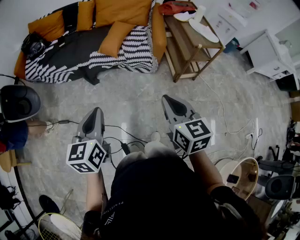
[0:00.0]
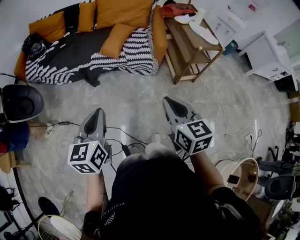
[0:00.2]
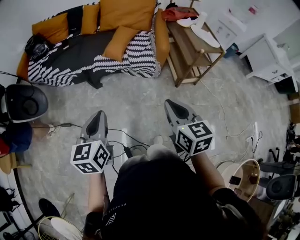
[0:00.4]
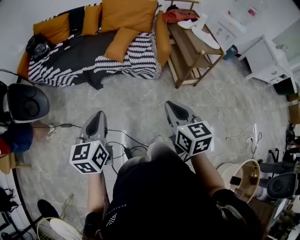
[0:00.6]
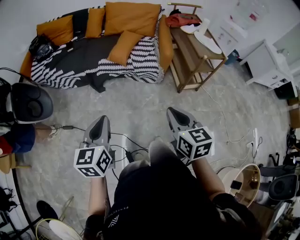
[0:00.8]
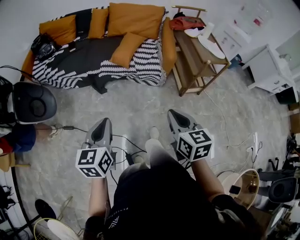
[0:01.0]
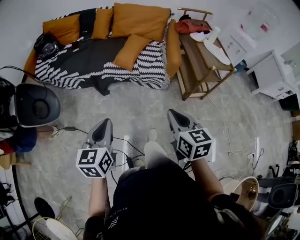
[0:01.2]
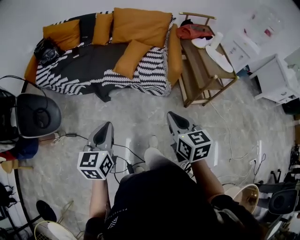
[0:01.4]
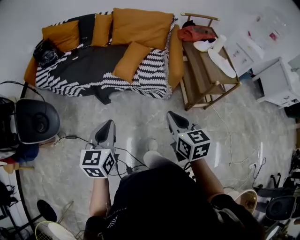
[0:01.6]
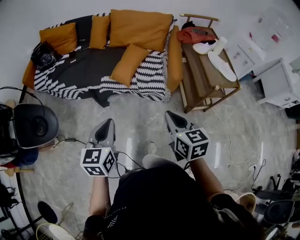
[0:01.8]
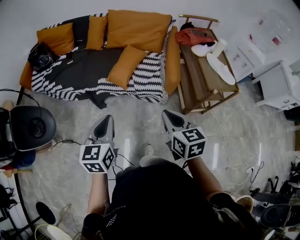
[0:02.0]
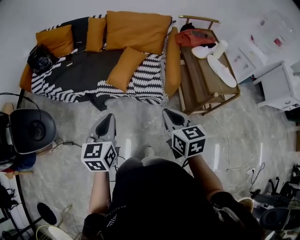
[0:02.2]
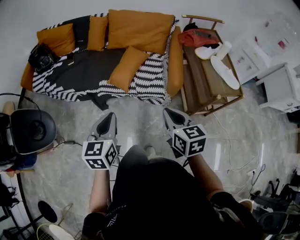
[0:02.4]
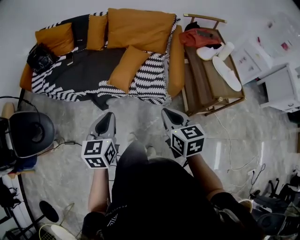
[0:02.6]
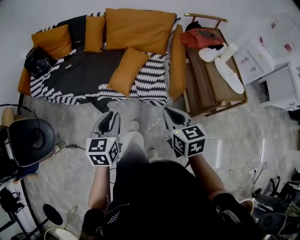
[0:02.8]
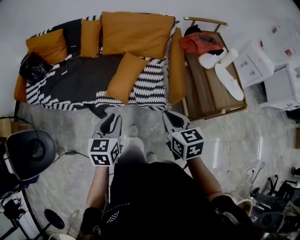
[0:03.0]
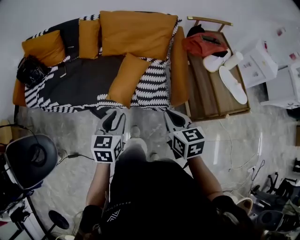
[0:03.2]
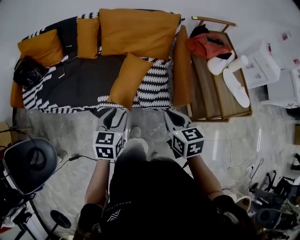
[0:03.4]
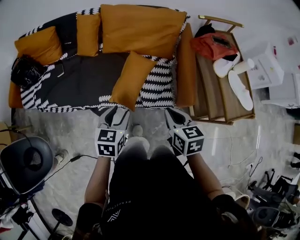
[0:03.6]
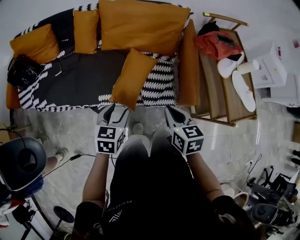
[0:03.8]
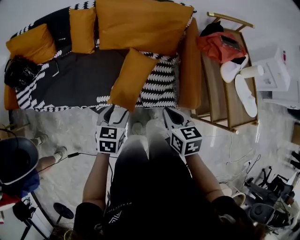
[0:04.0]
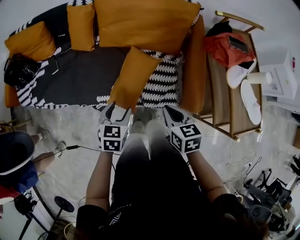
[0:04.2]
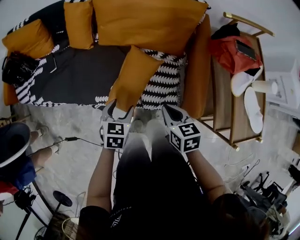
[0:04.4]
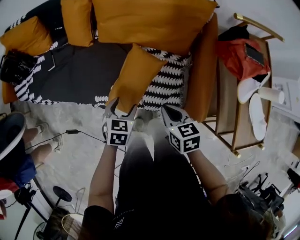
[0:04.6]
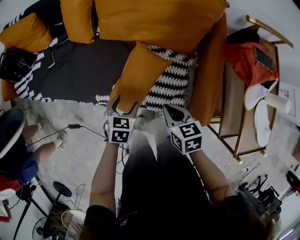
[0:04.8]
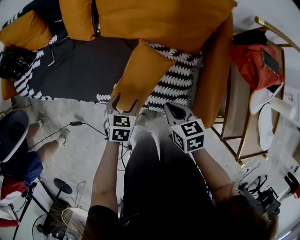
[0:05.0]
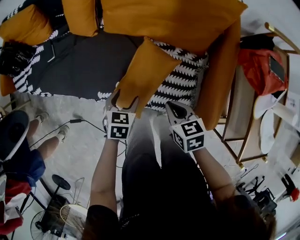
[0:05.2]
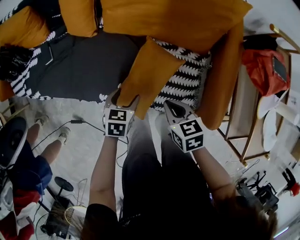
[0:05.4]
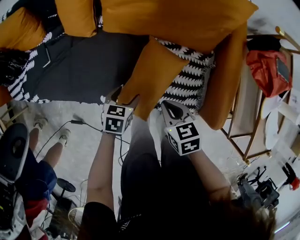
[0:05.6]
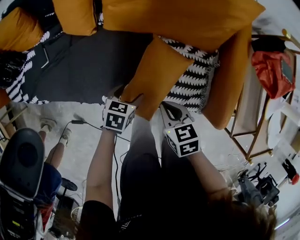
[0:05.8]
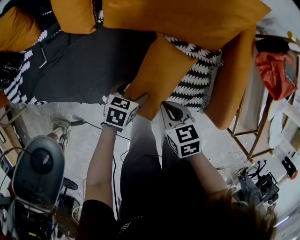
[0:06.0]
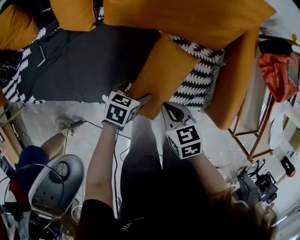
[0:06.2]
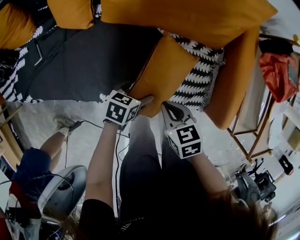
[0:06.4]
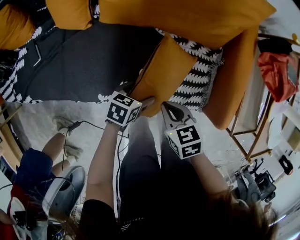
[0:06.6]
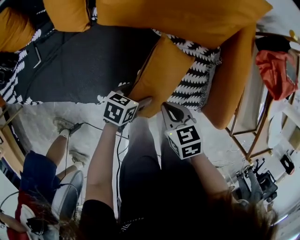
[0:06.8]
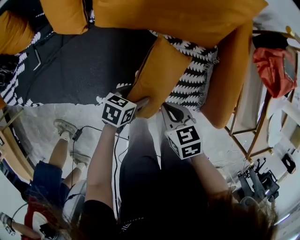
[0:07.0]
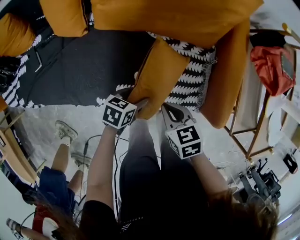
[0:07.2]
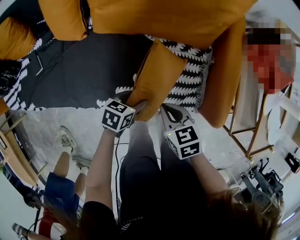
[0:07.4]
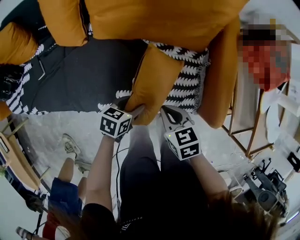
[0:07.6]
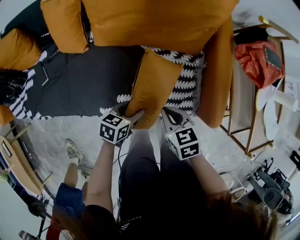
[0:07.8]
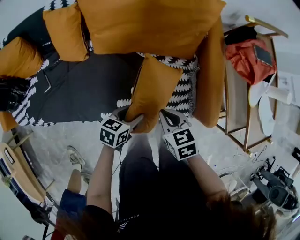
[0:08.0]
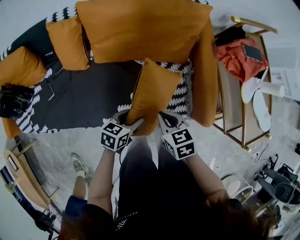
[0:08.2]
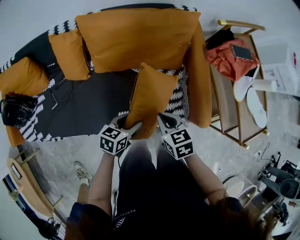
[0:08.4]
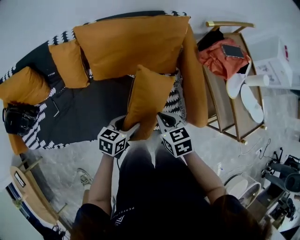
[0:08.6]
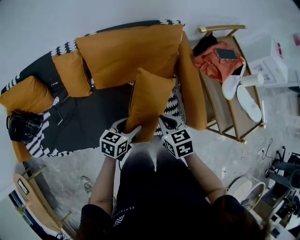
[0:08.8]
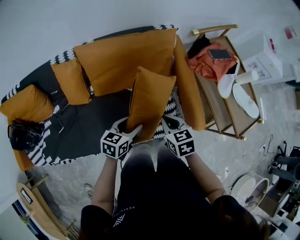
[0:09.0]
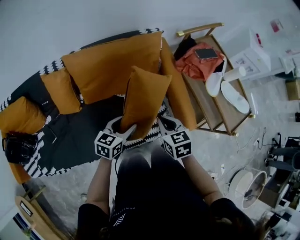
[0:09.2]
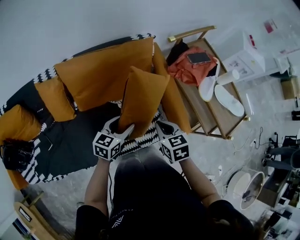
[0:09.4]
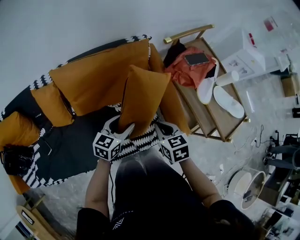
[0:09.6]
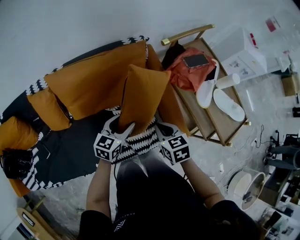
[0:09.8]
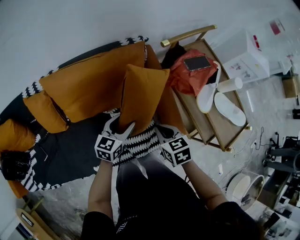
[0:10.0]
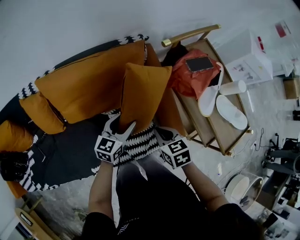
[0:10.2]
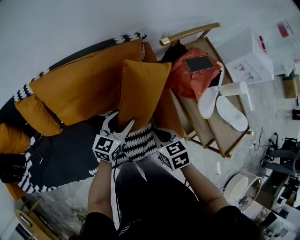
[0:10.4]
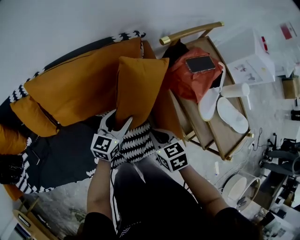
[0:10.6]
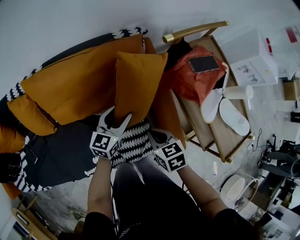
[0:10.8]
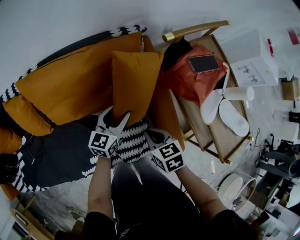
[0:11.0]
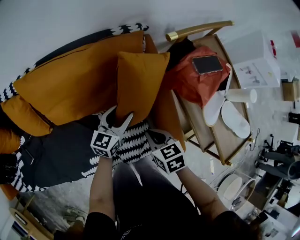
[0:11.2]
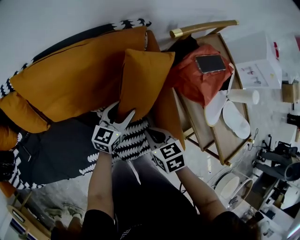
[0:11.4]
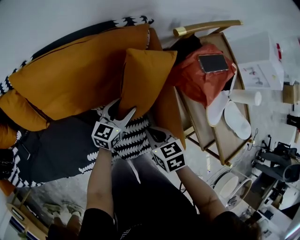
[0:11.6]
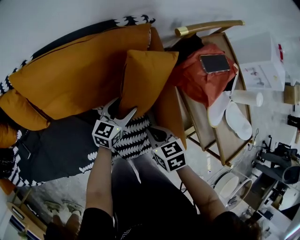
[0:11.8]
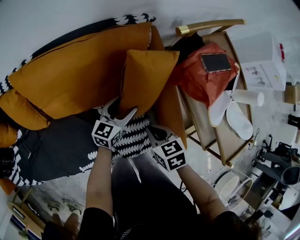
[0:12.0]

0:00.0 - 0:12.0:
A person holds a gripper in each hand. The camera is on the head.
0:00.0 - 0:01.6: Both grippers travel together forward, some 15 cm.
0:01.6 - 0:03.0: The two grippers go approximately 25 cm forward.
0:03.0 - 0:04.4: Both grippers travel together forward and downward, approximately 30 cm. The left gripper swivels approximately 20 degrees, and opens its fingers.
0:04.4 - 0:06.0: The left gripper shifts roughly 15 cm forward and to the left, travels downward and back again, about 15 cm each way, and rotates about 20 degrees; the right gripper heads to the left and forward, covering roughly 15 cm, and goes downward and returns, some 10 cm each way.
0:06.0 - 0:07.6: The left gripper moves roughly 5 cm, and closes up.
0:07.6 - 0:09.0: The two grippers go about 15 cm upward. The right gripper rotates approximately 20 degrees. The left gripper rotates approximately 20 degrees.
0:09.0 - 0:10.4: The left gripper moves forward and to the right, roughly 20 cm; the right gripper is displaced to the right, forward and downward by approximately 15 cm.
0:10.4 - 0:12.0: The two grippers go roughly 10 cm downward.

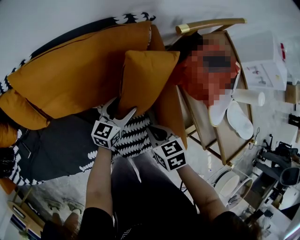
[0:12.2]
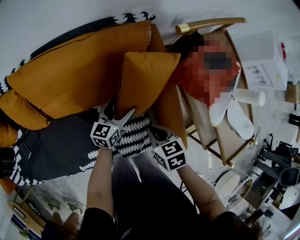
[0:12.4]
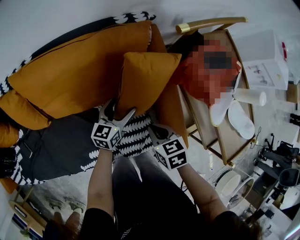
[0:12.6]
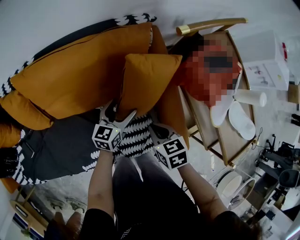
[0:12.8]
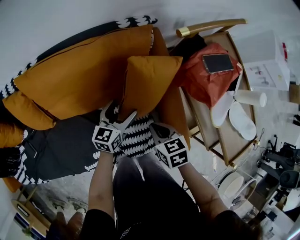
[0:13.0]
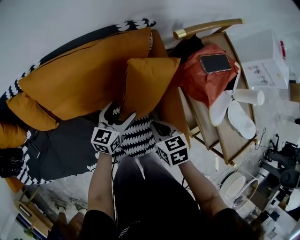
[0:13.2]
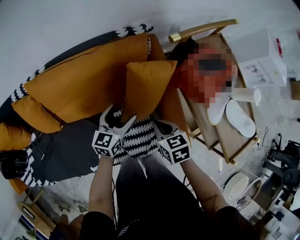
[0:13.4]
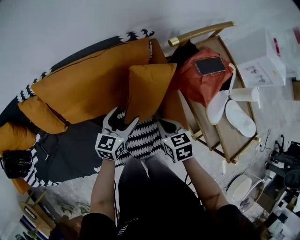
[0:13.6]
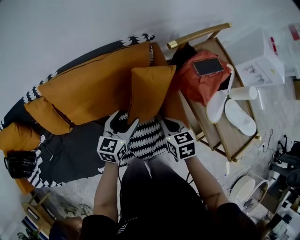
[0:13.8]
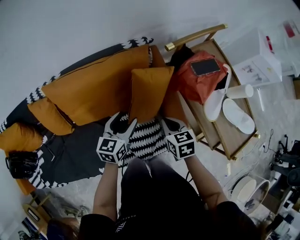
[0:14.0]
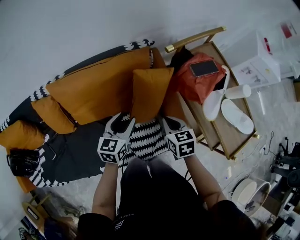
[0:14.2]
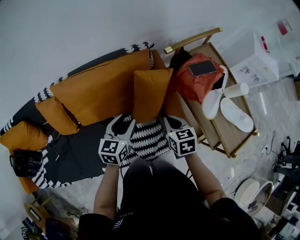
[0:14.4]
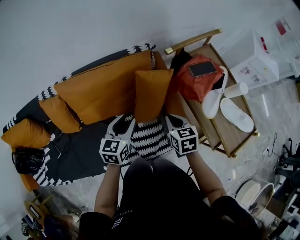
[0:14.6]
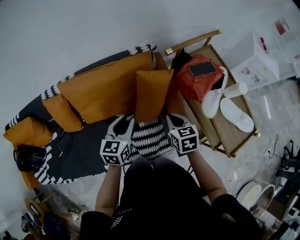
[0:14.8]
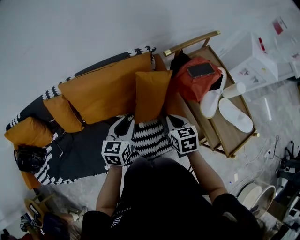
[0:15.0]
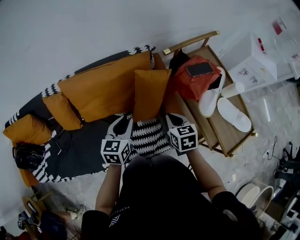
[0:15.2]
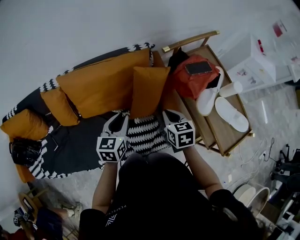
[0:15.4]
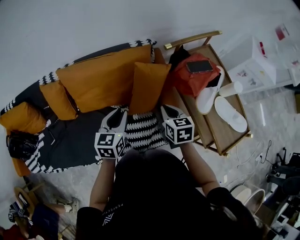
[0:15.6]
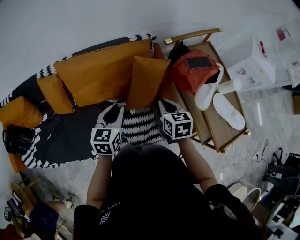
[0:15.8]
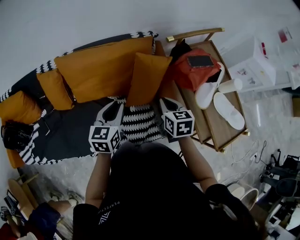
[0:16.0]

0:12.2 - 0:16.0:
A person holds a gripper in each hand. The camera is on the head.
0:12.2 - 0:13.4: The left gripper shifts approximately 5 cm upward.
0:13.4 - 0:14.8: The right gripper goes some 10 cm upward. Meanwhile the left gripper is displaced upward and backward by roughly 15 cm, and closes its fingers.
0:14.8 - 0:16.0: The grippers move only a little.

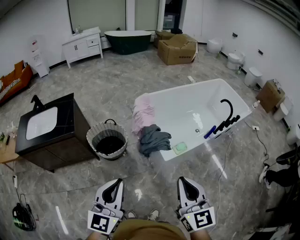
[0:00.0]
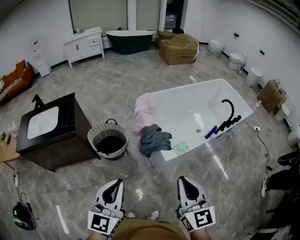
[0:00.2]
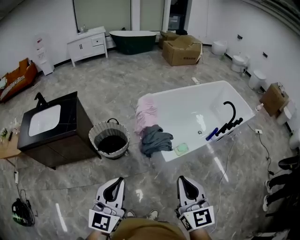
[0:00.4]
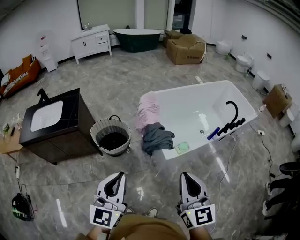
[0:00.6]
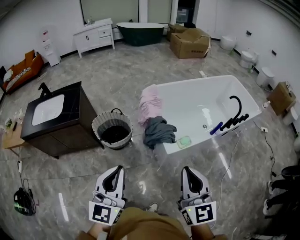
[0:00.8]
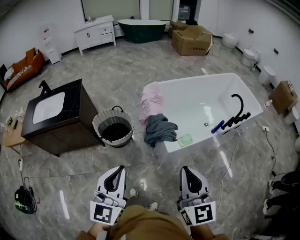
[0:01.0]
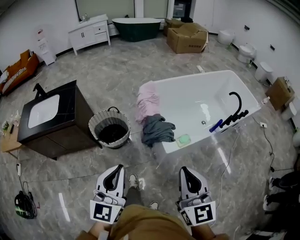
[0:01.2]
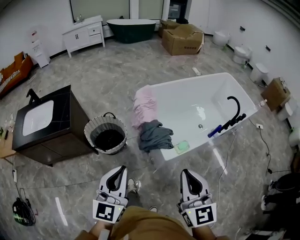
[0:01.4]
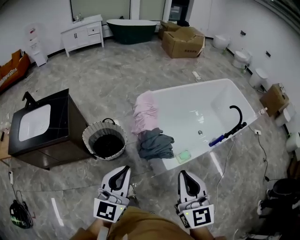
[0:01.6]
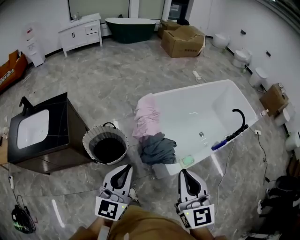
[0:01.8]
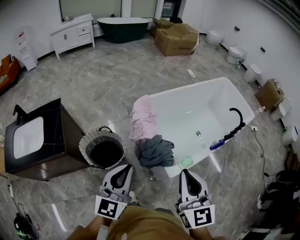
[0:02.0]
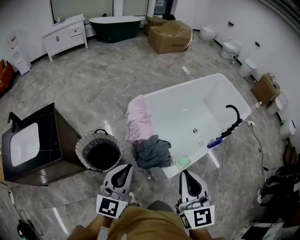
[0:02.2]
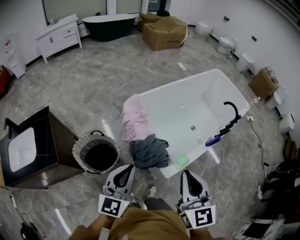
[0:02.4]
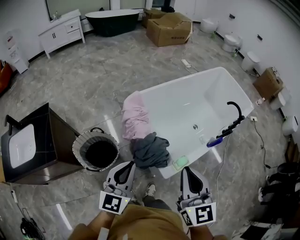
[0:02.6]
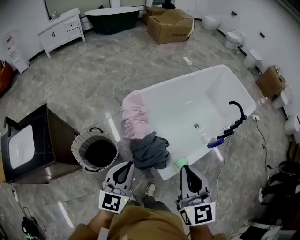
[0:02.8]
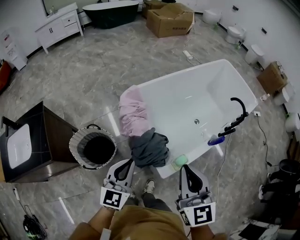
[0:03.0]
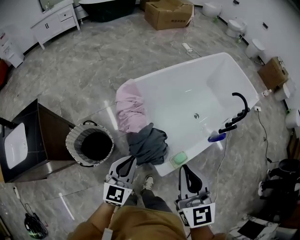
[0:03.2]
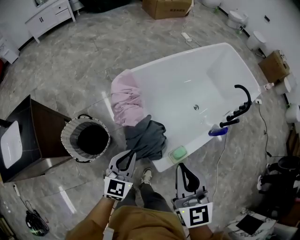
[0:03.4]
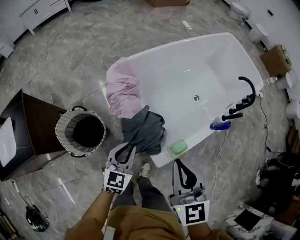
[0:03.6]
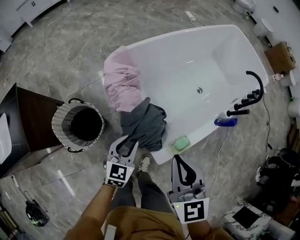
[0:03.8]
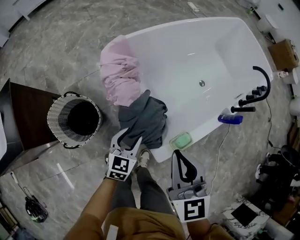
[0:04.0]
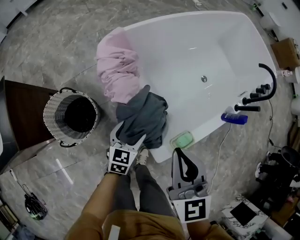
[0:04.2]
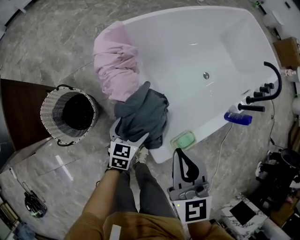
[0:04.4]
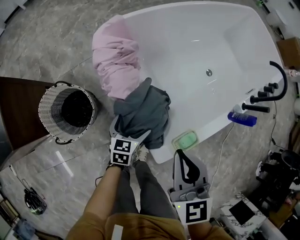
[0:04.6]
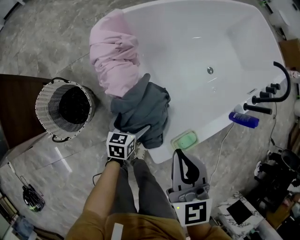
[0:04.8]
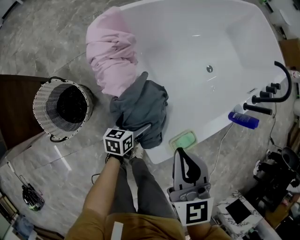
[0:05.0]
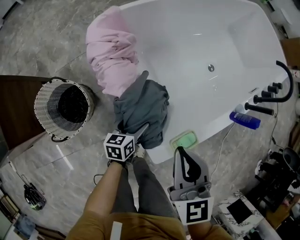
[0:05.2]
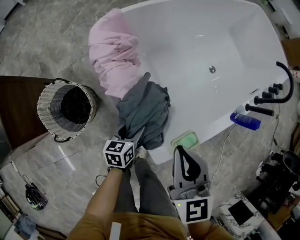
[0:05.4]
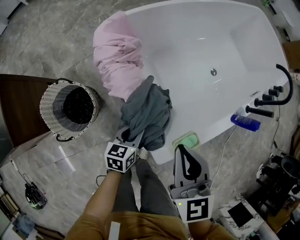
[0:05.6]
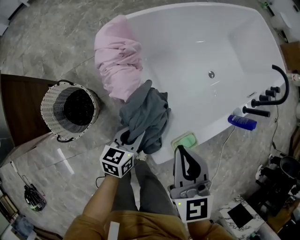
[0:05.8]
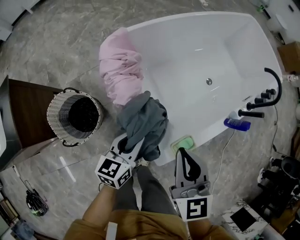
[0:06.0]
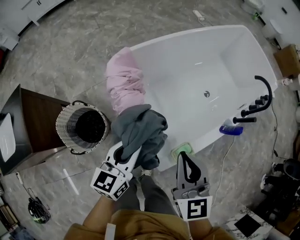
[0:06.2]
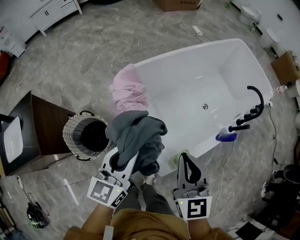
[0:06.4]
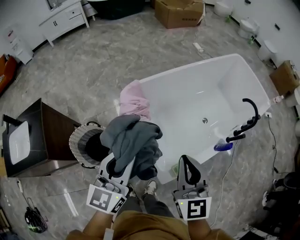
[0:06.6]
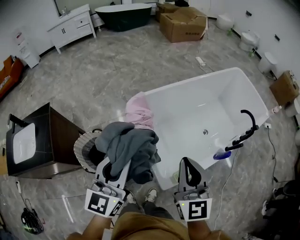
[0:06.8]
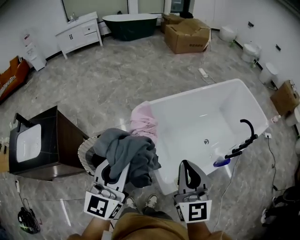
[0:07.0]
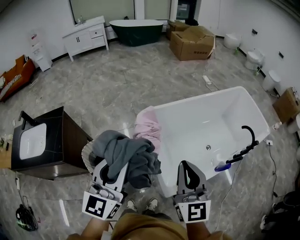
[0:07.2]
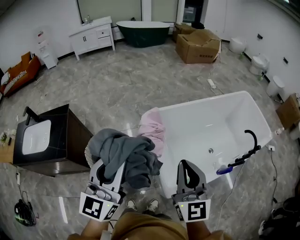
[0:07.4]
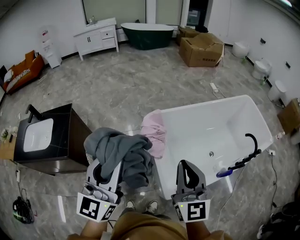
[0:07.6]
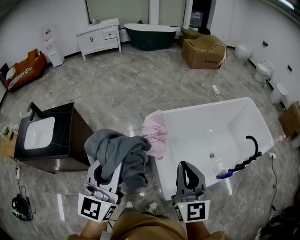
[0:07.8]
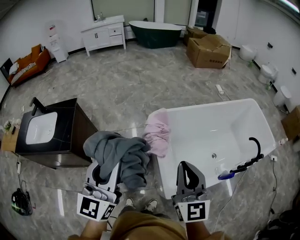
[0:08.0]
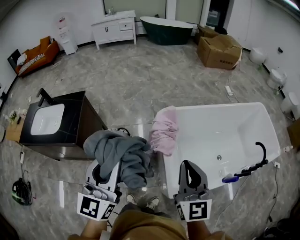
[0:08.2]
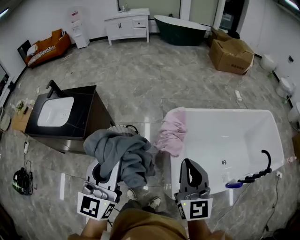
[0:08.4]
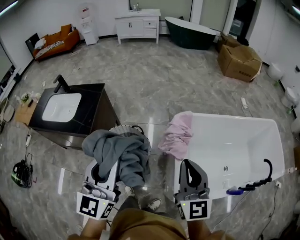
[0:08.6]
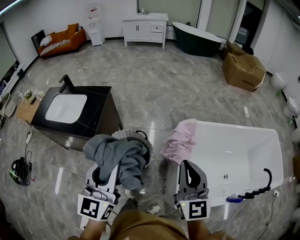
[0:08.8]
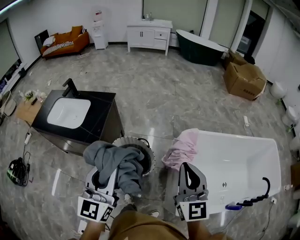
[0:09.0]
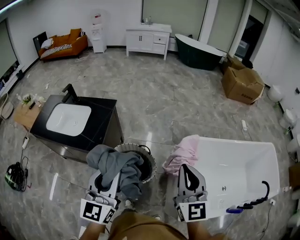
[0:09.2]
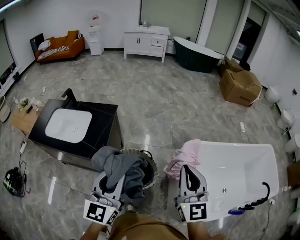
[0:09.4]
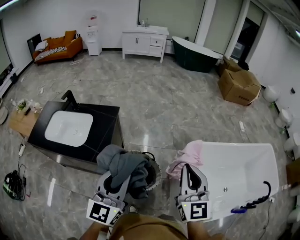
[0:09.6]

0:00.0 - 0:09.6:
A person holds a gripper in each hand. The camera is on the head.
0:00.0 - 0:01.6: Both grippers move forward, roughly 15 cm.
0:01.6 - 0:03.2: The left gripper shifts about 30 cm forward and downward. The right gripper moves forward, approximately 20 cm.
0:03.2 - 0:04.8: The left gripper goes approximately 40 cm downward, turns by about 40 degrees, and opens up, while the right gripper travels downward by some 25 cm.
0:04.8 - 0:06.4: The right gripper moves upward, some 15 cm, while the left gripper moves upward, roughly 40 cm, points its fingers about 30 degrees further upward, and closes up.
0:06.4 - 0:08.0: The right gripper heads upward and to the left, covering approximately 20 cm, and changes its angle by some 20 degrees. The left gripper goes about 30 cm upward, to the left and backward, and rotates roughly 40 degrees.
0:08.0 - 0:09.6: The left gripper shifts some 25 cm to the left, while the right gripper travels to the left and forward by some 30 cm.
